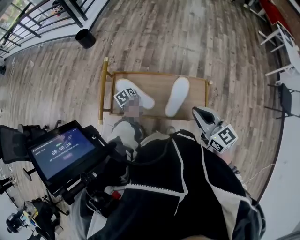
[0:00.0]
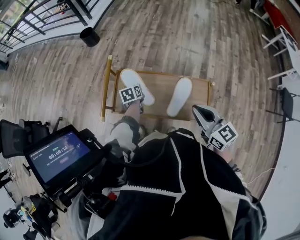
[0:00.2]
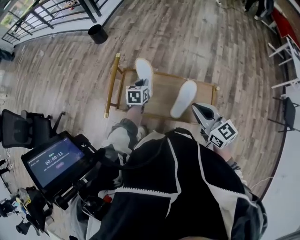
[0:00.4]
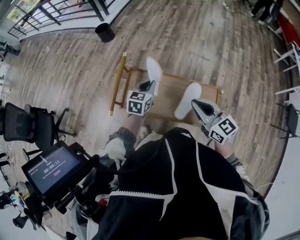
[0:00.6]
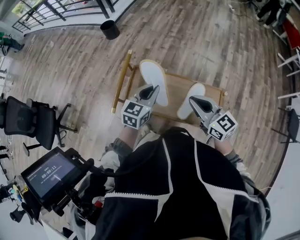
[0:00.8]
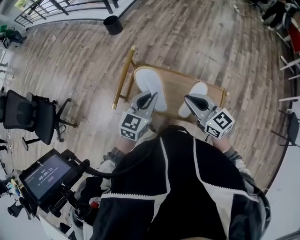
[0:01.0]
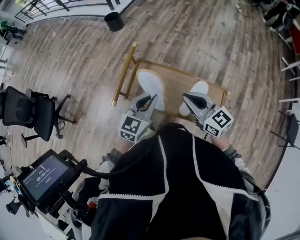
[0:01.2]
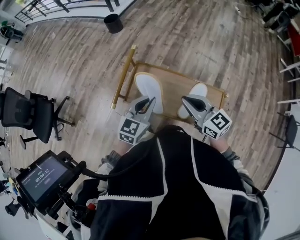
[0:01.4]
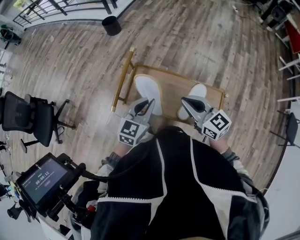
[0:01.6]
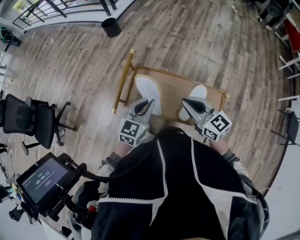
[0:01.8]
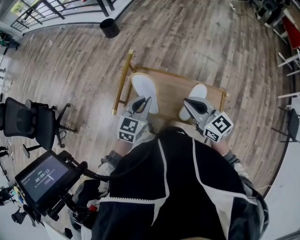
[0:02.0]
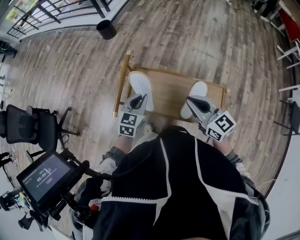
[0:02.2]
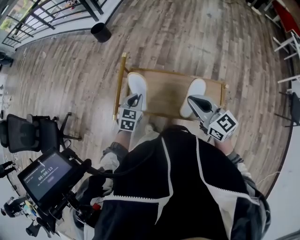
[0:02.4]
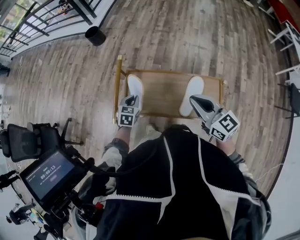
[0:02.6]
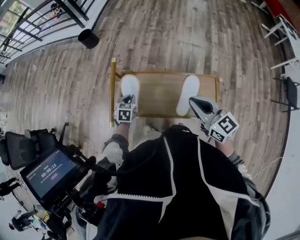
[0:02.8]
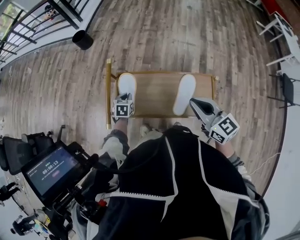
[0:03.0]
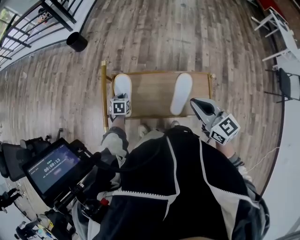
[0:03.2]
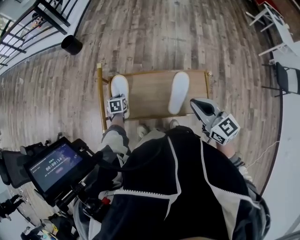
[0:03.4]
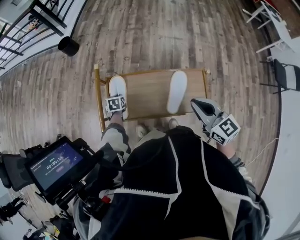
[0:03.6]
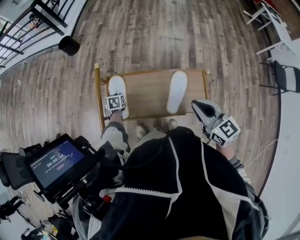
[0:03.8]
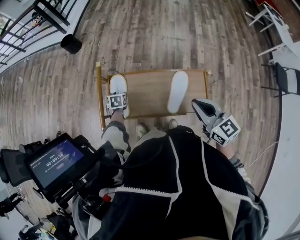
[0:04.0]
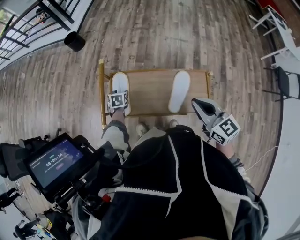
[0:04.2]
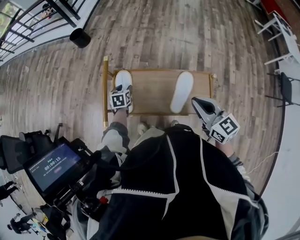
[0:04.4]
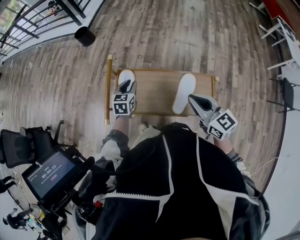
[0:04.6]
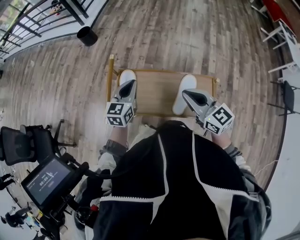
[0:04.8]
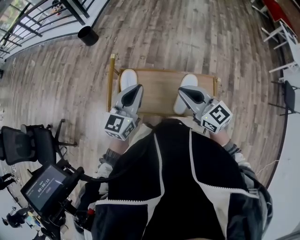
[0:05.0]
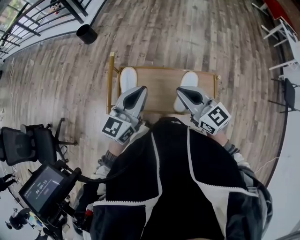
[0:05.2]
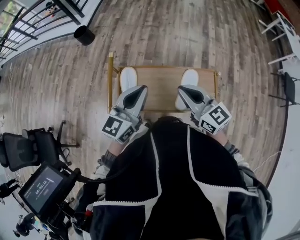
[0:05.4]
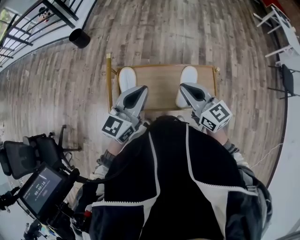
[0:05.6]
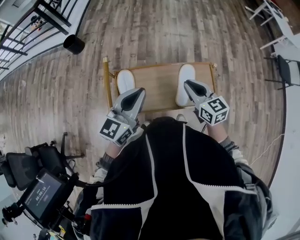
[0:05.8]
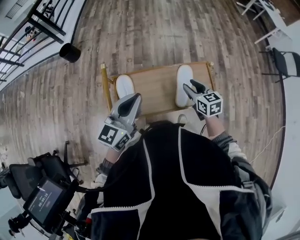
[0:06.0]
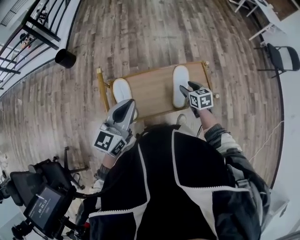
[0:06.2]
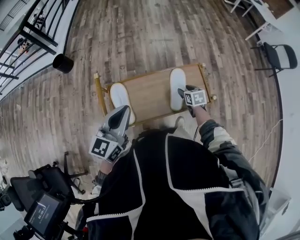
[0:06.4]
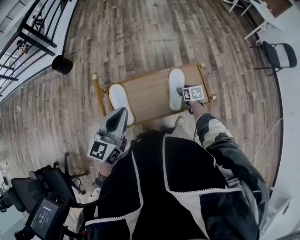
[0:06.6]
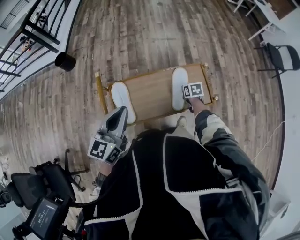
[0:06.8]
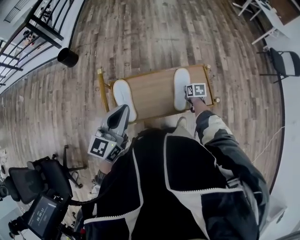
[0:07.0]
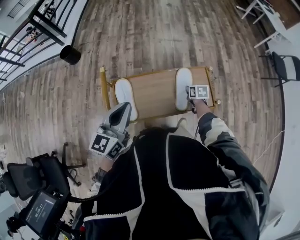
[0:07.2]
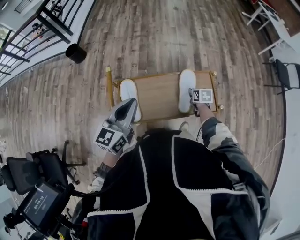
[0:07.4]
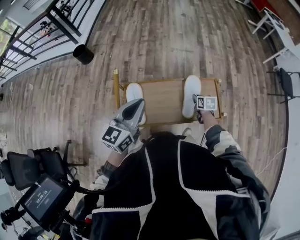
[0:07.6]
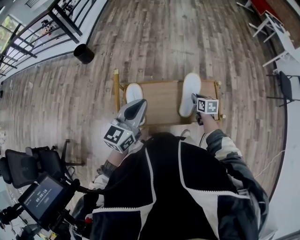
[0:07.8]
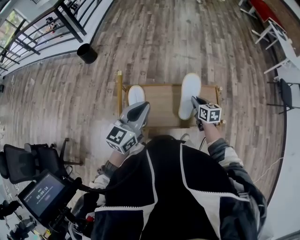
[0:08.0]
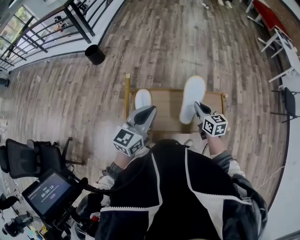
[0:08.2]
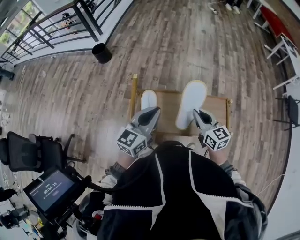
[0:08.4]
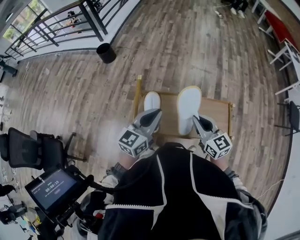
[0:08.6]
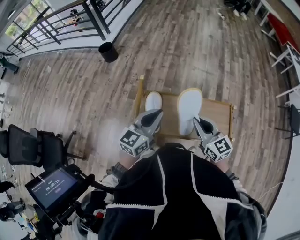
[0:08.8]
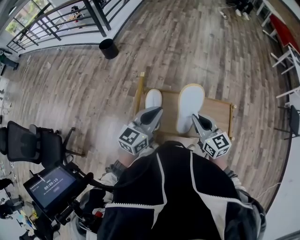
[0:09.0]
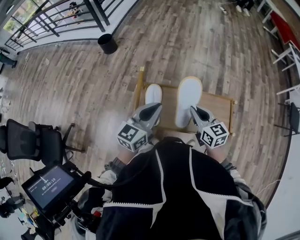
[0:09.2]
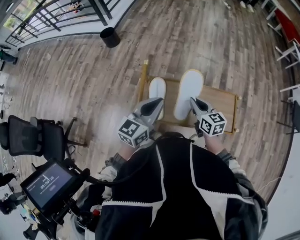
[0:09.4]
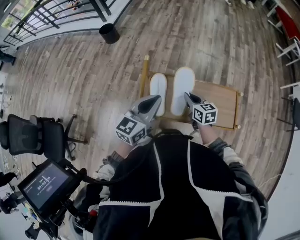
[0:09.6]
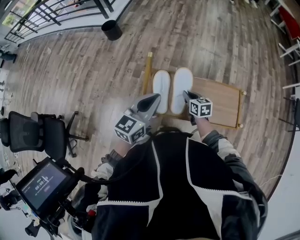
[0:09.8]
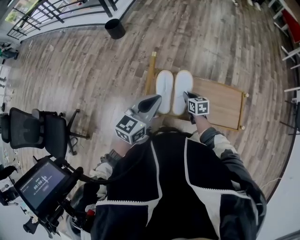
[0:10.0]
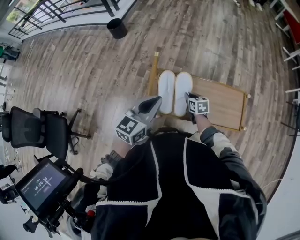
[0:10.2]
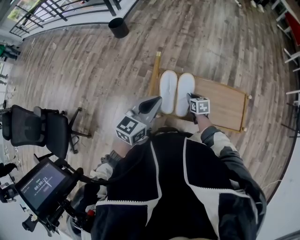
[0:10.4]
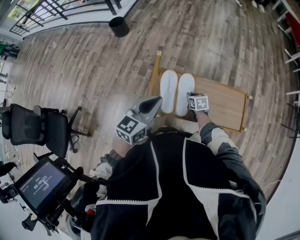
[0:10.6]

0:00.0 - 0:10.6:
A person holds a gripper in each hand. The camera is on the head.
0:00.0 - 0:01.6: The right gripper goes roughly 15 cm to the left and forward. Meanwhile the left gripper travels upward and backward by some 30 cm, and rotates around the line of its fingers by approximately 50 degrees, clockwise from behind.
0:01.6 - 0:03.0: The right gripper is displaced to the right by roughly 10 cm; the left gripper moves downward and forward, about 30 cm, and points its fingers some 40 degrees further downward.
0:03.0 - 0:04.6: The right gripper changes place by roughly 5 cm, while the left gripper travels upward by roughly 15 cm, and opens, then closes again.
0:04.6 - 0:06.0: The left gripper goes approximately 15 cm upward, swivels approximately 40 degrees, and closes. The right gripper heads downward, covering approximately 15 cm, swivels about 30 degrees, and opens.
0:06.0 - 0:07.6: The right gripper shifts about 15 cm downward and forward, rotates some 30 degrees, and closes its fingers. The left gripper moves to the left, about 5 cm.
0:07.6 - 0:09.0: The right gripper shifts about 30 cm upward and to the left, and tilts its fingers about 40 degrees upward.
0:09.0 - 0:10.6: The right gripper is displaced downward by roughly 30 cm, and tilts its fingers some 40 degrees downward. Meanwhile the left gripper moves to the left, roughly 5 cm.

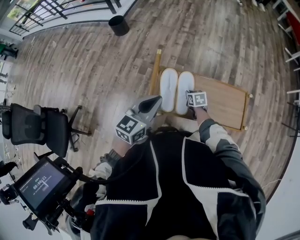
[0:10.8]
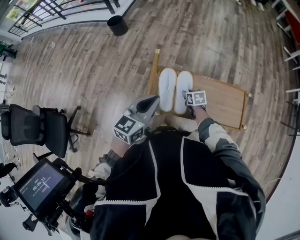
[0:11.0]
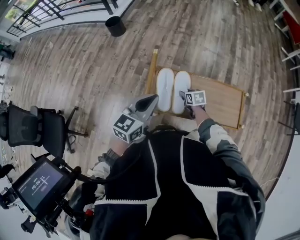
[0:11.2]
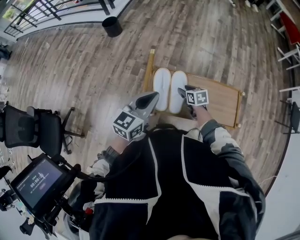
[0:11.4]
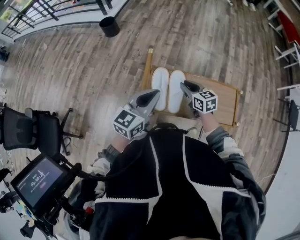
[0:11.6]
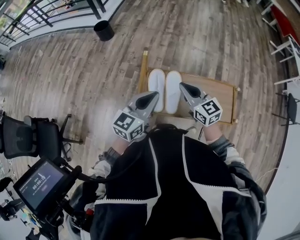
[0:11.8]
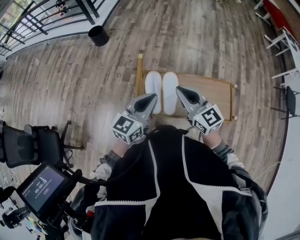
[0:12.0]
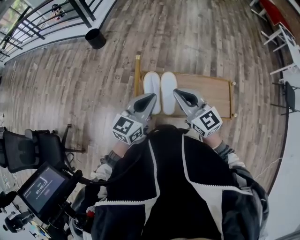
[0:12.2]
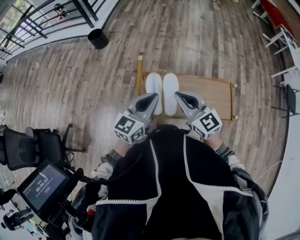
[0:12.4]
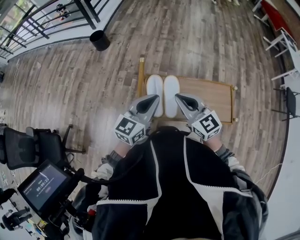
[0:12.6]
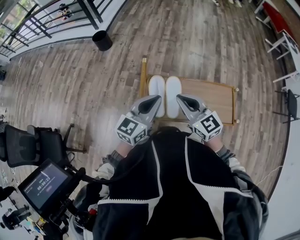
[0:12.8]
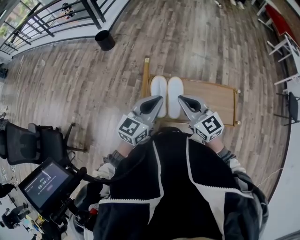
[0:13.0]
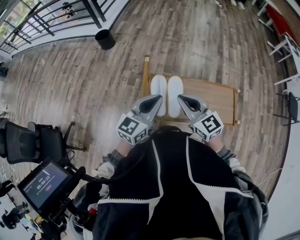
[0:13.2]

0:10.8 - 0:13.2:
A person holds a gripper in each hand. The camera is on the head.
0:10.8 - 0:12.0: The right gripper travels upward by approximately 35 cm, tilts its fingers about 50 degrees upward, and opens, then closes once more.
0:12.0 - 0:13.2: The grippers move only a little.

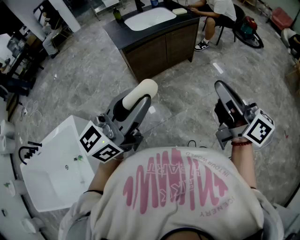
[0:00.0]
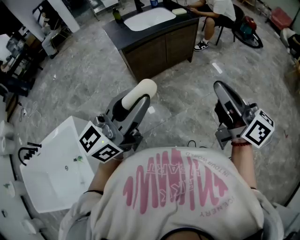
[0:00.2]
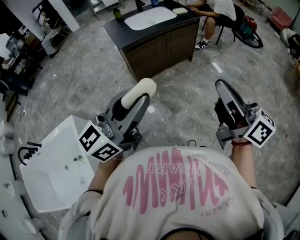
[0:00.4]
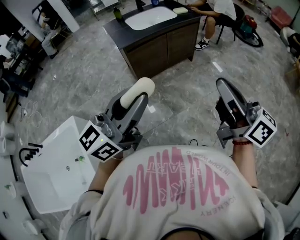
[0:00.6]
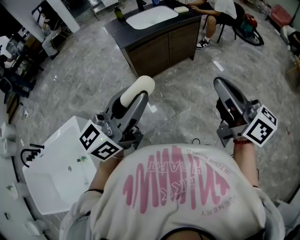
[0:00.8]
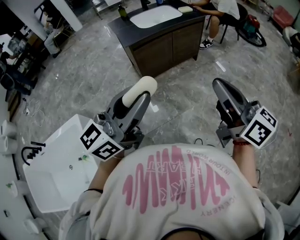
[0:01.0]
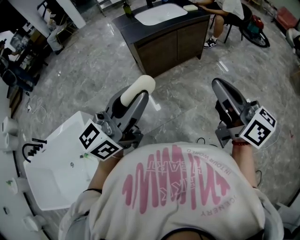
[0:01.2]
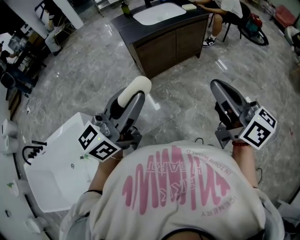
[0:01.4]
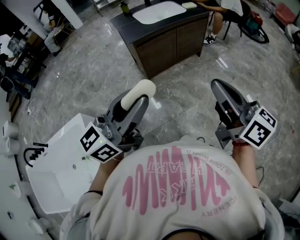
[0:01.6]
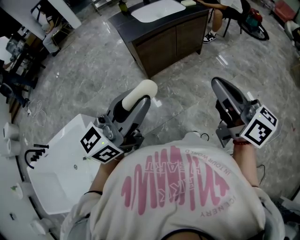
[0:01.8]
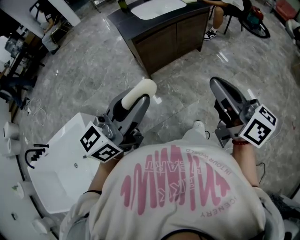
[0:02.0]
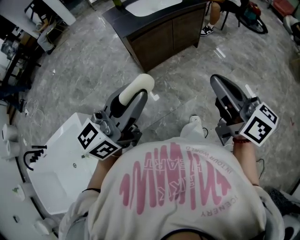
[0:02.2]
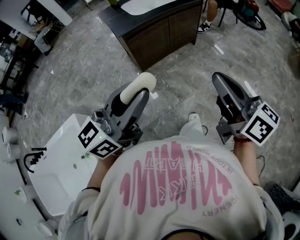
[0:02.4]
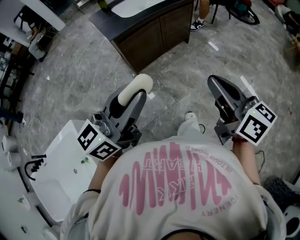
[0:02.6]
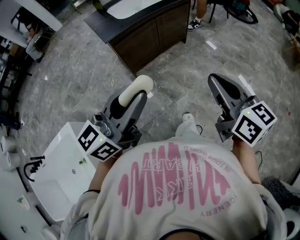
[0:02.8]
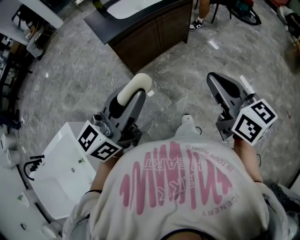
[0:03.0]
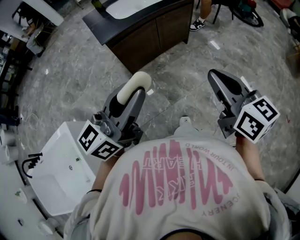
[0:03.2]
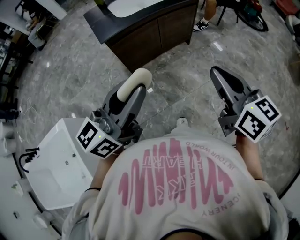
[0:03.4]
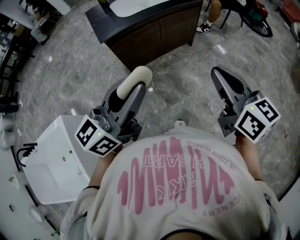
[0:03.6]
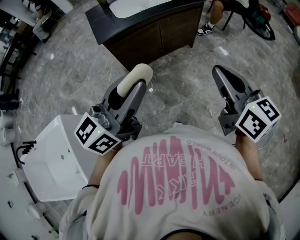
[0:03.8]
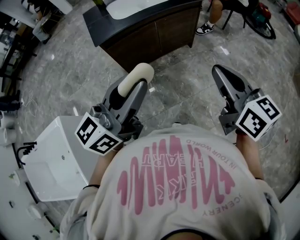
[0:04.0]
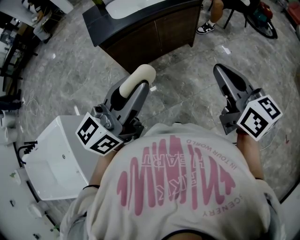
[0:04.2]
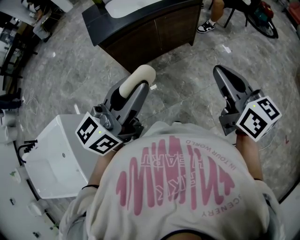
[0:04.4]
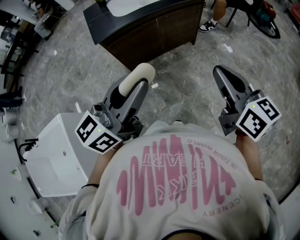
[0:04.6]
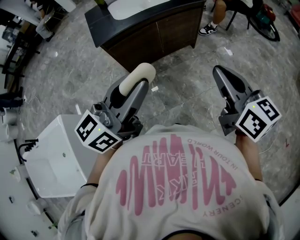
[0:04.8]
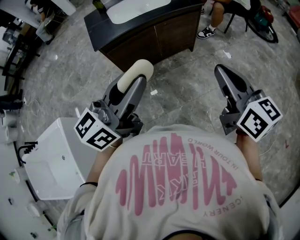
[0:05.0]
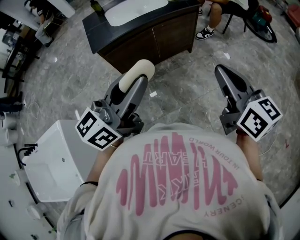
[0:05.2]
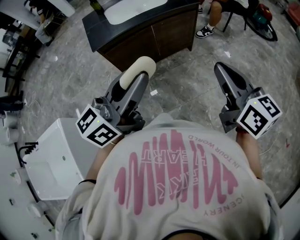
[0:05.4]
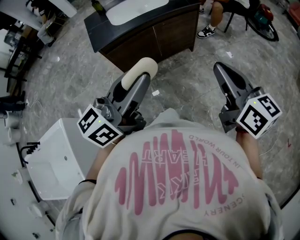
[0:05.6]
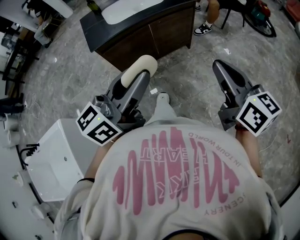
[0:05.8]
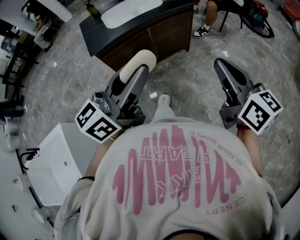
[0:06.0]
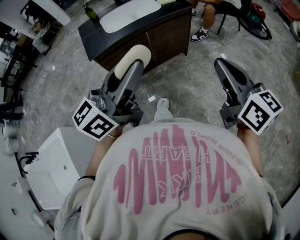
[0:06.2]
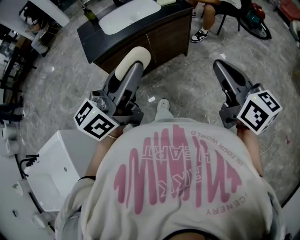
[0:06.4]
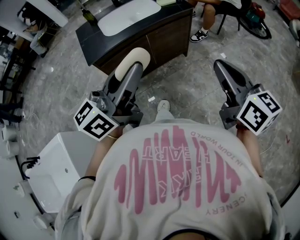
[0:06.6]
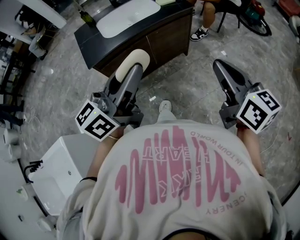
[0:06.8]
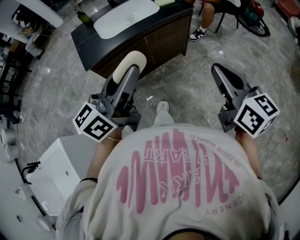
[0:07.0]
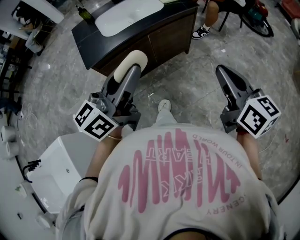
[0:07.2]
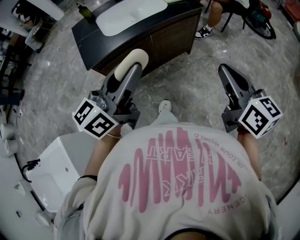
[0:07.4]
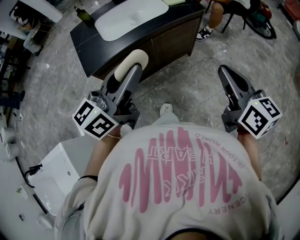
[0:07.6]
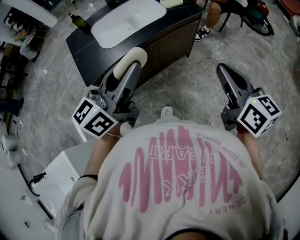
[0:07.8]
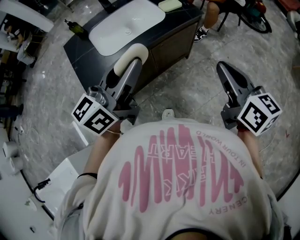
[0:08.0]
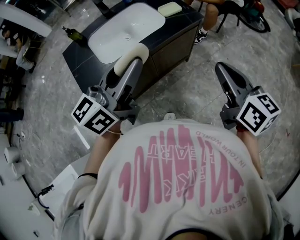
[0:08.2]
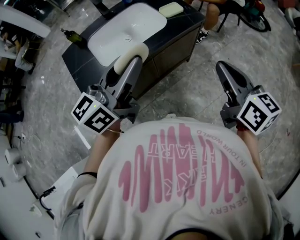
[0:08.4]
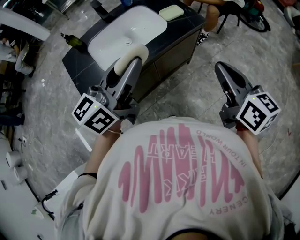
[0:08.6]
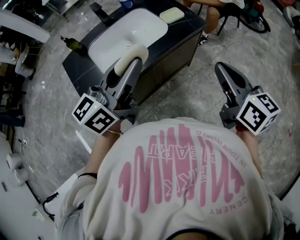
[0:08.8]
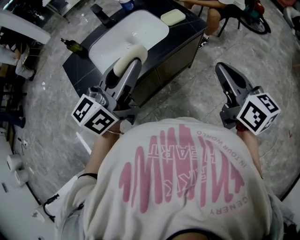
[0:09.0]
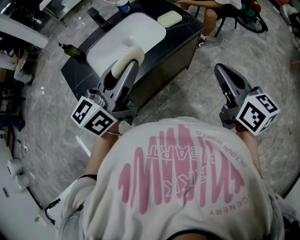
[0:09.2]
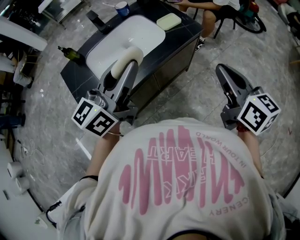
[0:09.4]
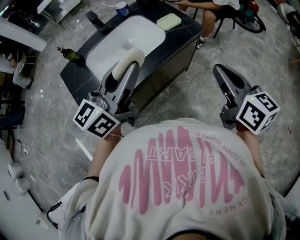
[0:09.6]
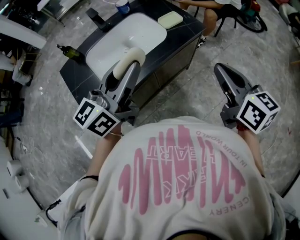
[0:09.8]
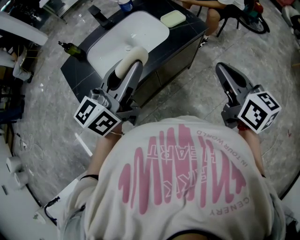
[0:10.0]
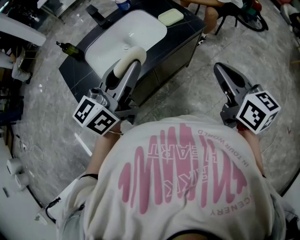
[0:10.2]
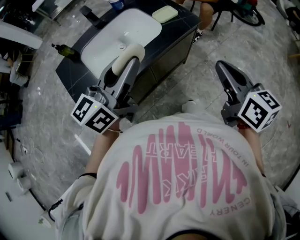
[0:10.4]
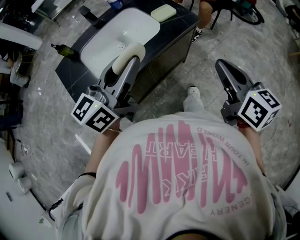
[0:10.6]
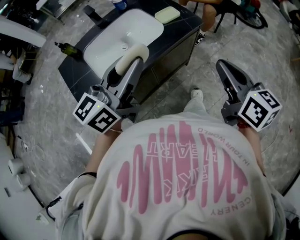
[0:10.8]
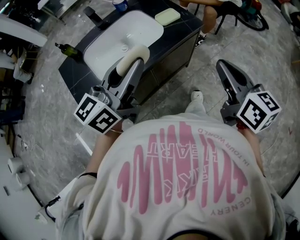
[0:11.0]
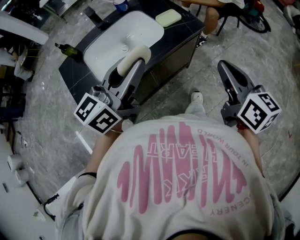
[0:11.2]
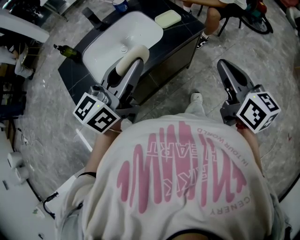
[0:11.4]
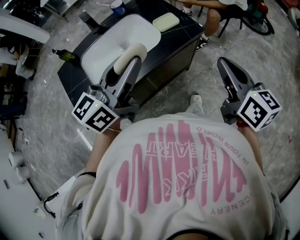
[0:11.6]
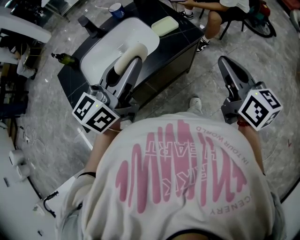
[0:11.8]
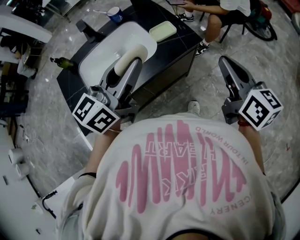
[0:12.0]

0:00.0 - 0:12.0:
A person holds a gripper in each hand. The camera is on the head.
0:00.0 - 0:01.6: Both grippers travel together to the left, some 10 cm.
0:01.6 - 0:03.0: The right gripper heads forward, to the right and downward, covering some 15 cm, and turns by about 20 degrees; the left gripper is displaced forward and to the right by some 10 cm.
0:03.0 - 0:04.4: Both grippers travel together forward and to the right, about 20 cm.
0:04.4 - 0:06.0: The right gripper changes place by roughly 5 cm. The left gripper shifts by about 5 cm.
0:06.0 - 0:07.6: The left gripper moves forward and to the left, about 20 cm; the right gripper shifts roughly 15 cm forward.
0:07.6 - 0:09.0: Both grippers travel together forward, approximately 15 cm.
0:09.0 - 0:10.4: The grippers stay close to where they were, moving slightly.
0:10.4 - 0:12.0: Both grippers travel together forward and to the right, some 15 cm.
